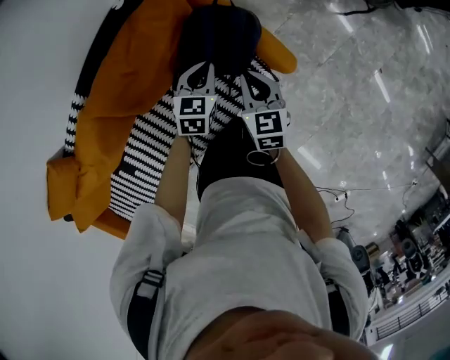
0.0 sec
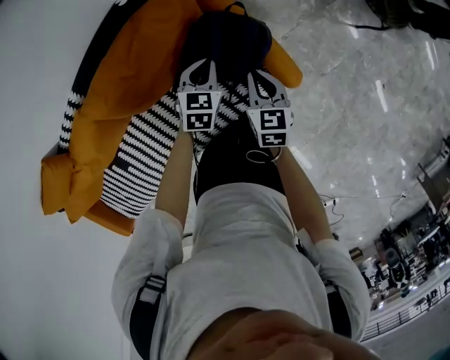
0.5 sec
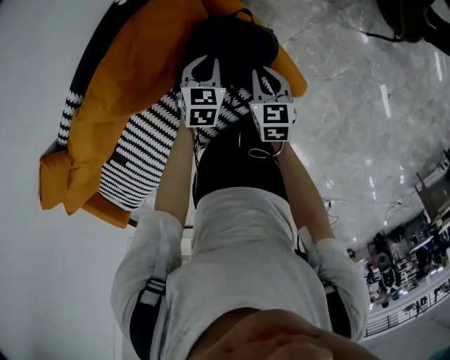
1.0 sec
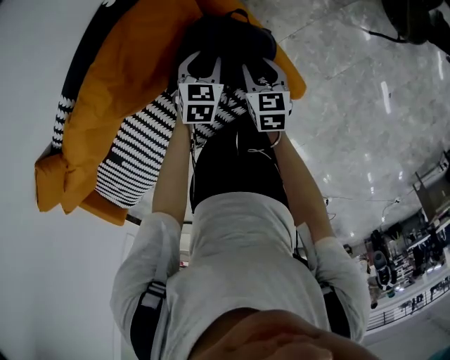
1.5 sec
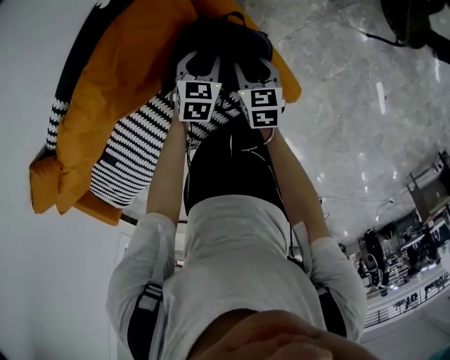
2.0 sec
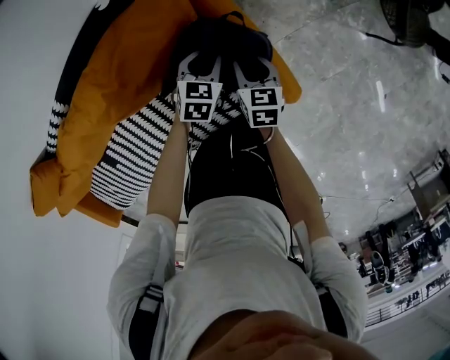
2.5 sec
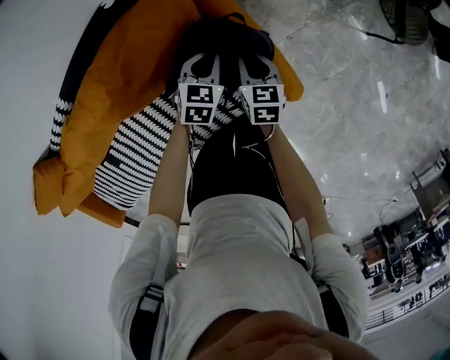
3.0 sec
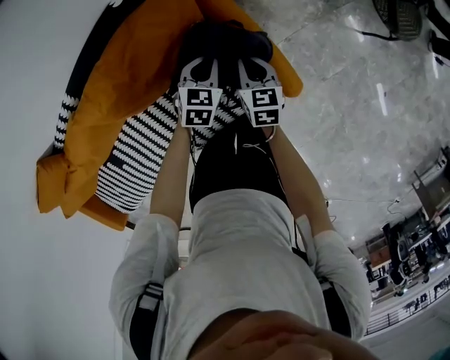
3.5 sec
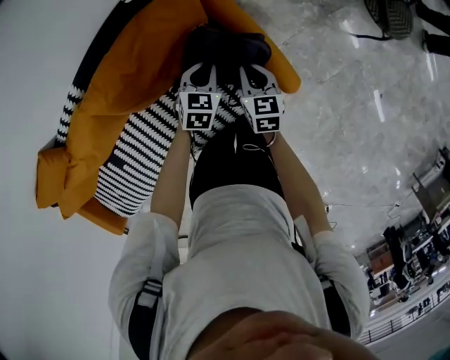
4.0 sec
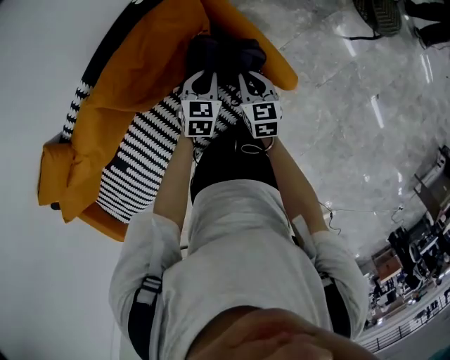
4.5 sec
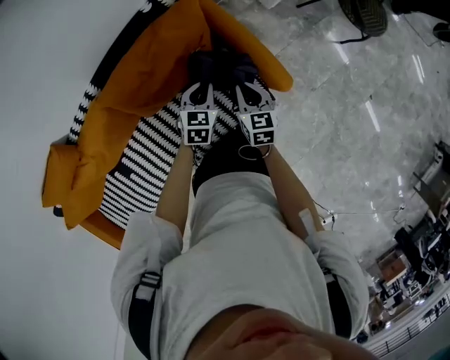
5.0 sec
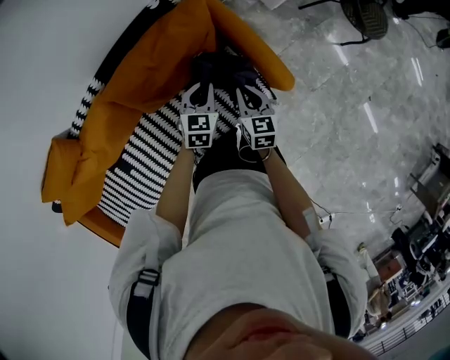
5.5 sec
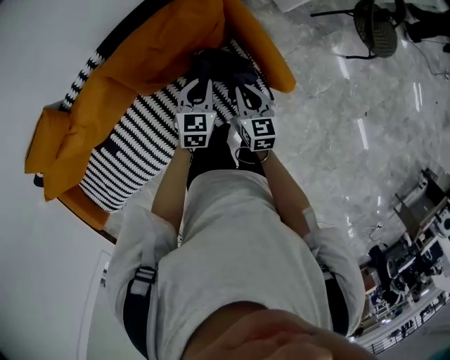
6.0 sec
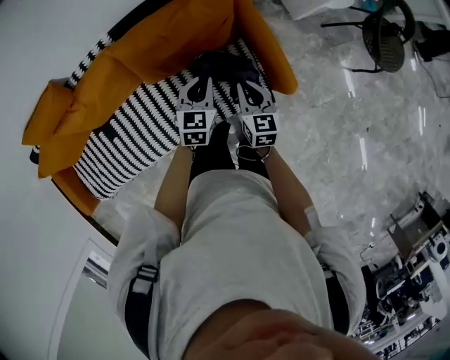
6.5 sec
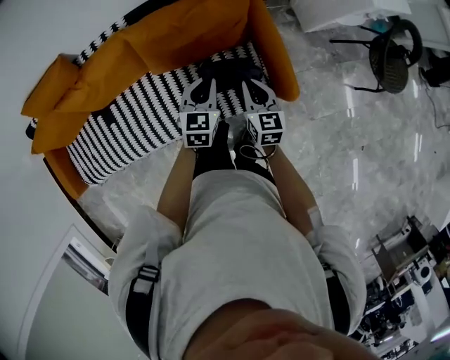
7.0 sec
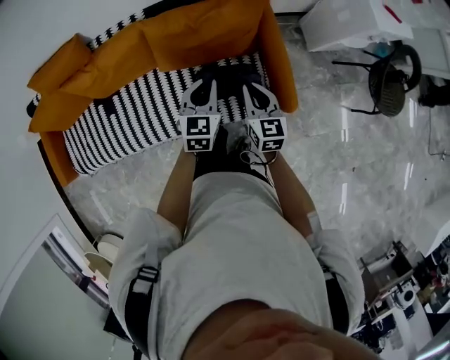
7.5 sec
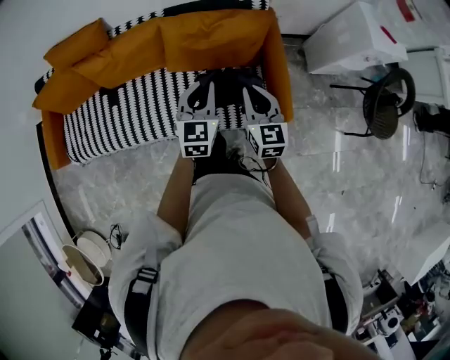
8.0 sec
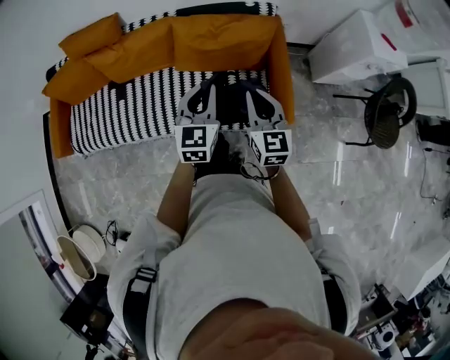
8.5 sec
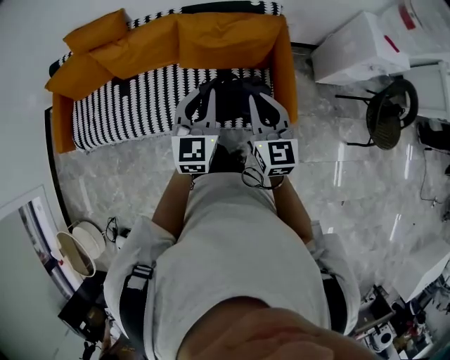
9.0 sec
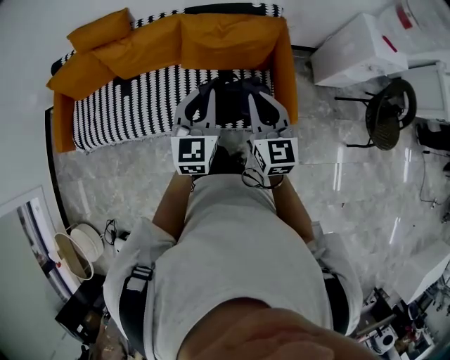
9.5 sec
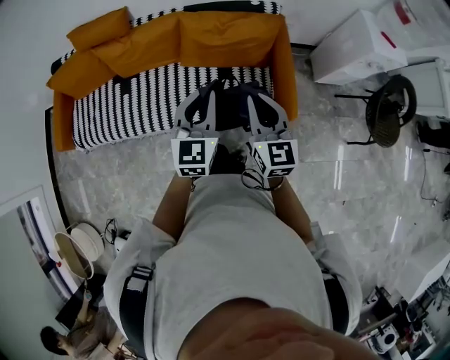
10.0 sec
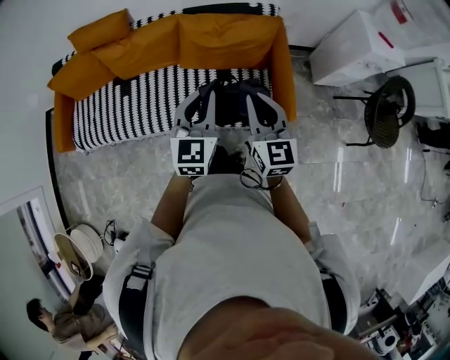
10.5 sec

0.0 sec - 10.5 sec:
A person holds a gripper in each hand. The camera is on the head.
0.0 sec - 2.0 sec: The two grippers go roughly 20 cm downward and forward. The left gripper opens its fingers. The right gripper opens up.
2.0 sec - 4.0 sec: Both grippers move upward and backward, approximately 10 cm. The left gripper closes its fingers, while the right gripper closes up.
4.0 sec - 6.5 sec: The right gripper goes roughly 20 cm backward and upward; the left gripper moves upward, backward and to the left, roughly 20 cm, and turns by about 20 degrees.
6.5 sec - 8.5 sec: Both grippers move upward and backward, about 25 cm. The left gripper rotates about 30 degrees. The right gripper rotates about 30 degrees.
8.5 sec - 10.5 sec: The two grippers go roughly 10 cm backward and upward.

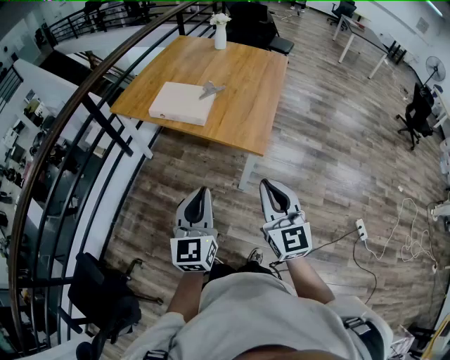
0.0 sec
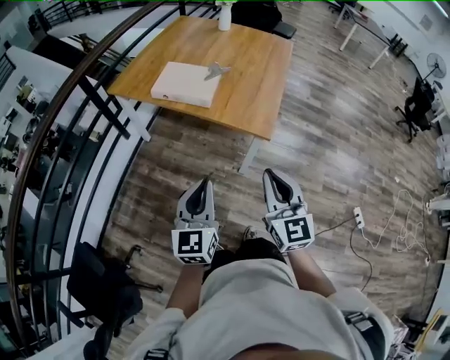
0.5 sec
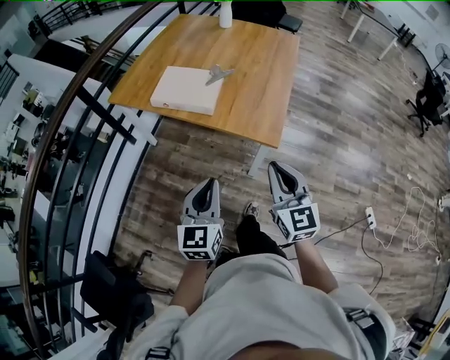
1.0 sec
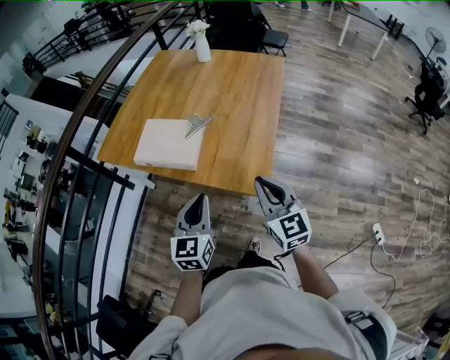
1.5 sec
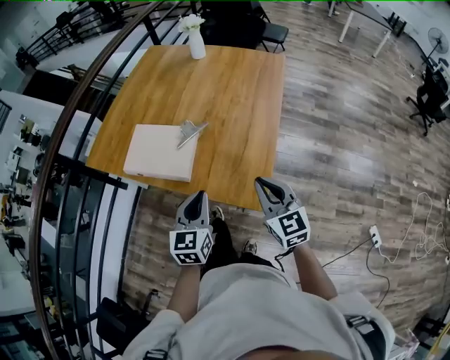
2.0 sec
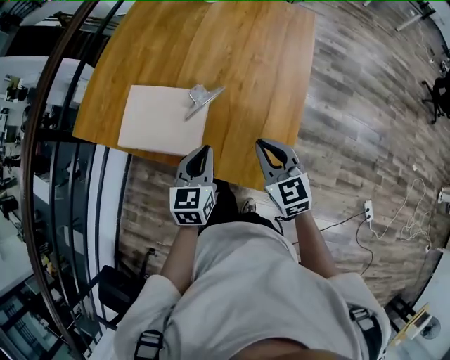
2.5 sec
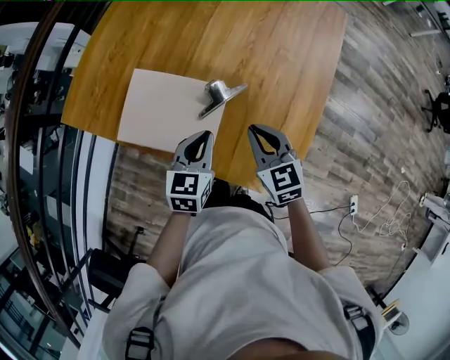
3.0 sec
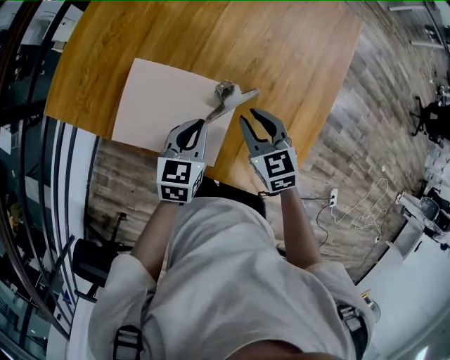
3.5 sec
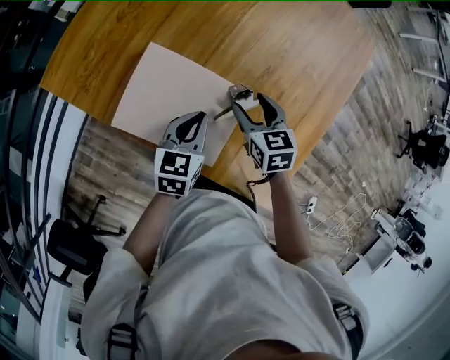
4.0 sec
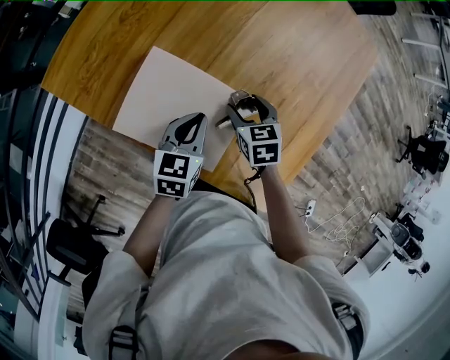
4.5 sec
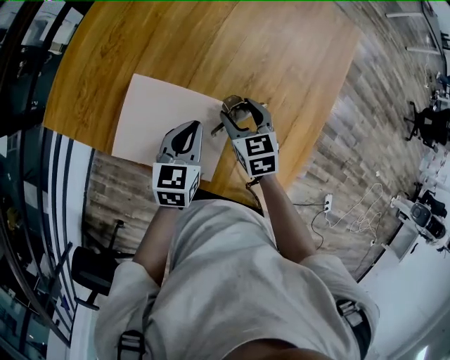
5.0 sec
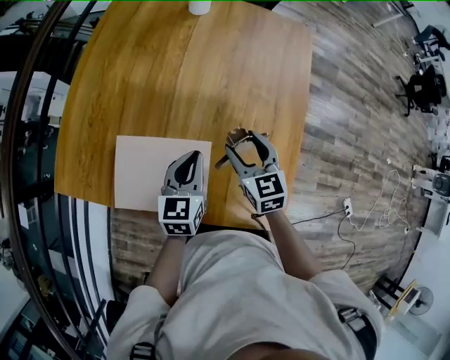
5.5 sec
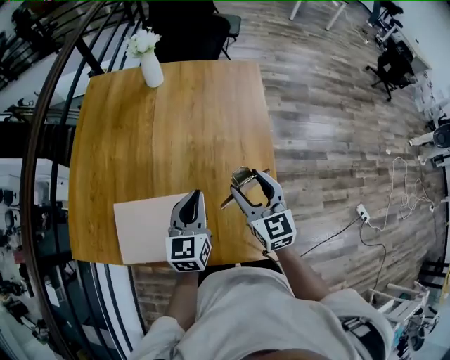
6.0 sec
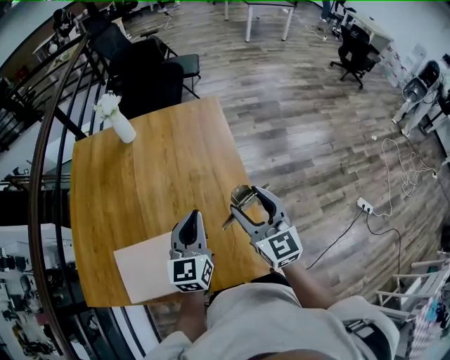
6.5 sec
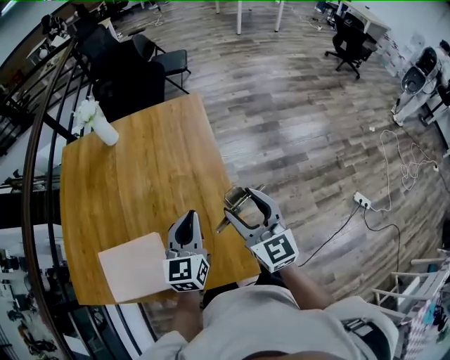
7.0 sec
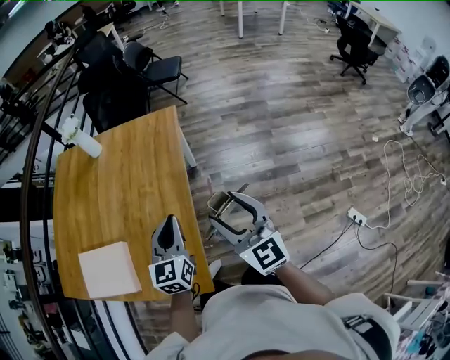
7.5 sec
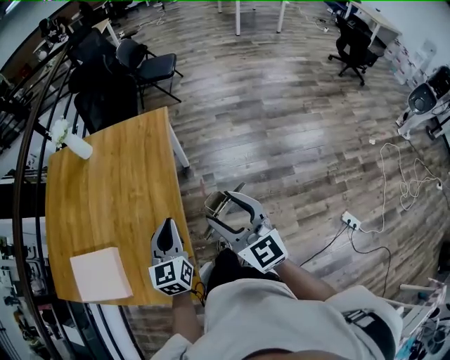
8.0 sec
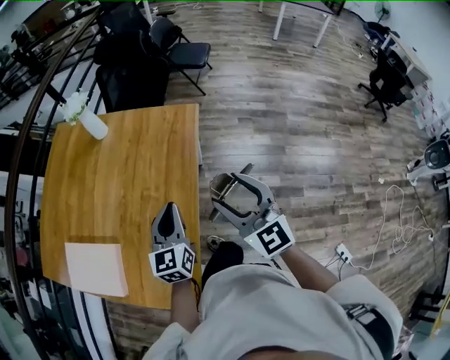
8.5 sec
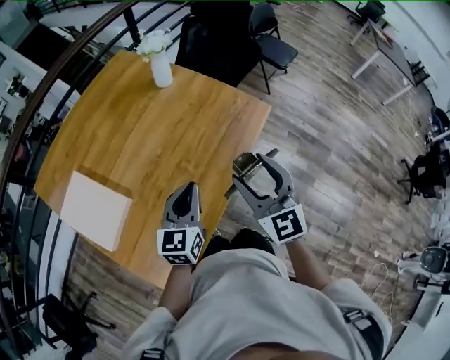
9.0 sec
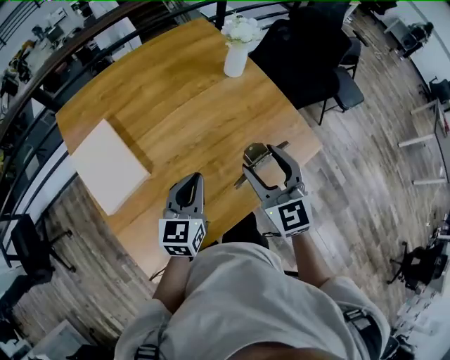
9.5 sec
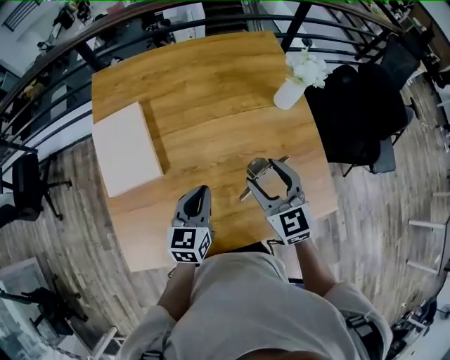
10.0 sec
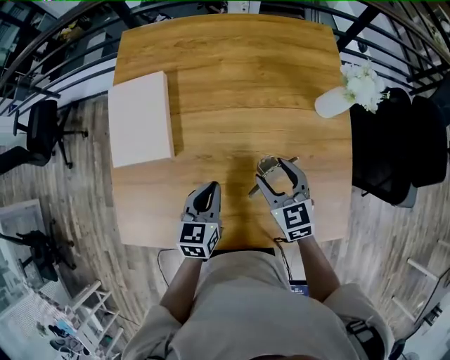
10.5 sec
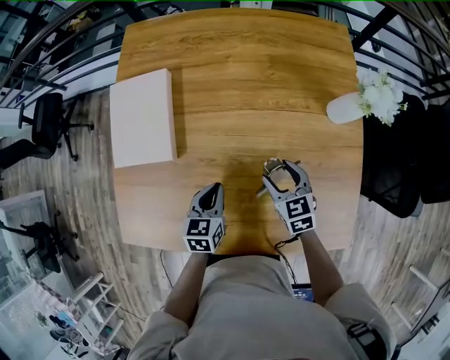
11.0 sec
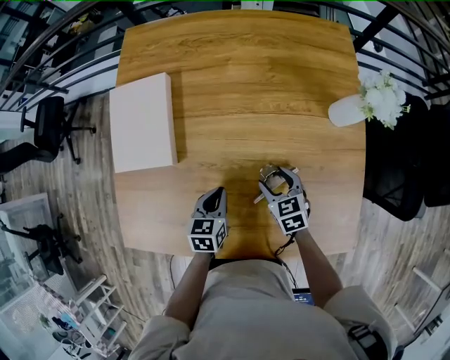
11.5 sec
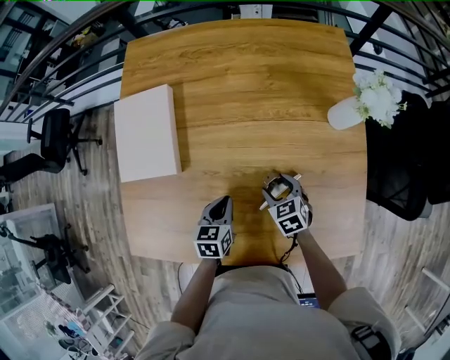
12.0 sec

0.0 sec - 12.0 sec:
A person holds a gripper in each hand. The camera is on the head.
0.0 sec - 2.0 sec: The two grippers go some 35 cm forward.
2.0 sec - 4.0 sec: The left gripper goes approximately 40 cm forward, downward and to the left, and turns by some 20 degrees; the right gripper heads forward, to the left and downward, covering some 50 cm, points its fingers some 30 degrees further downward, and opens.
4.0 sec - 6.0 sec: Both grippers move to the right and upward, roughly 25 cm. The left gripper swivels about 30 degrees. Meanwhile the right gripper turns by roughly 40 degrees.
6.0 sec - 8.0 sec: Both grippers travel together to the right, some 40 cm.
8.0 sec - 10.0 sec: The left gripper ends up roughly 35 cm from where it was, and swivels some 70 degrees; the right gripper shifts by some 50 cm, and swivels about 80 degrees.
10.0 sec - 12.0 sec: The right gripper moves downward, approximately 25 cm, and rotates some 30 degrees. The left gripper moves downward, some 15 cm, and rotates approximately 30 degrees.

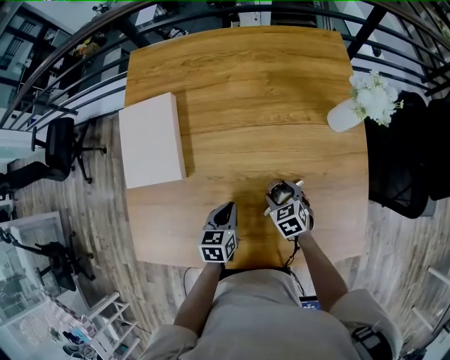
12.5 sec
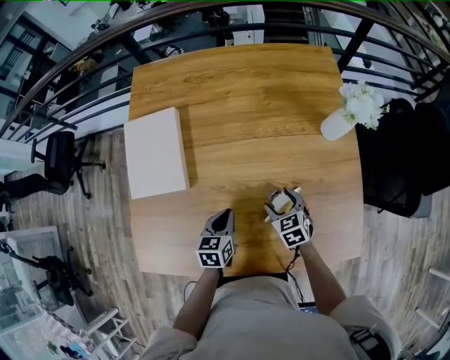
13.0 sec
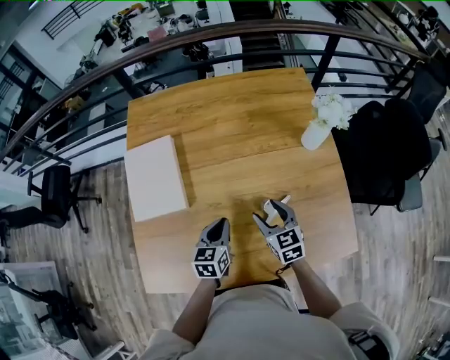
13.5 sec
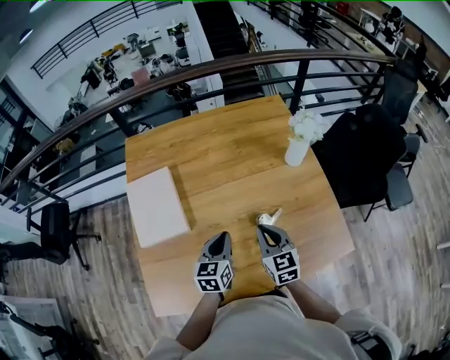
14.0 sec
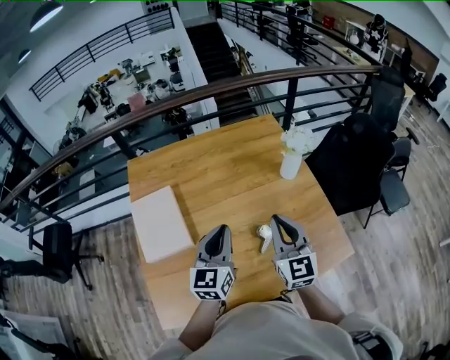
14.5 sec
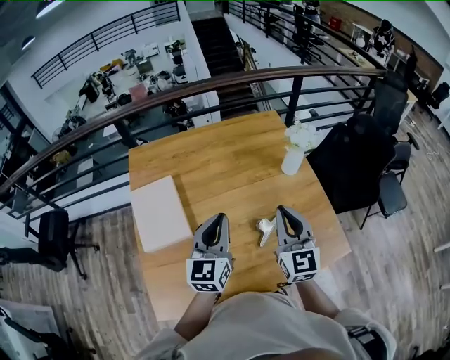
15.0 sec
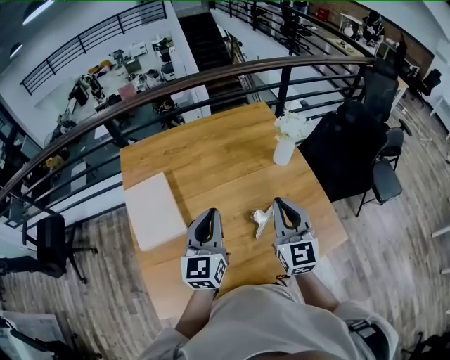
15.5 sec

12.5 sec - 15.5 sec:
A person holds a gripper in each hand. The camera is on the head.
12.5 sec - 14.0 sec: Both grippers move upward, approximately 20 cm. The left gripper turns by approximately 20 degrees; the right gripper tilts its fingers roughly 30 degrees upward, and closes its fingers.
14.0 sec - 15.5 sec: Both grippers move upward, roughly 15 cm. The right gripper turns by some 30 degrees. The left gripper swivels roughly 30 degrees.

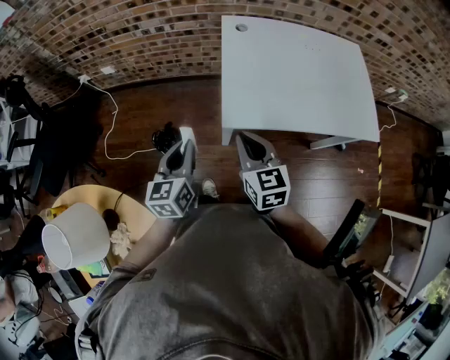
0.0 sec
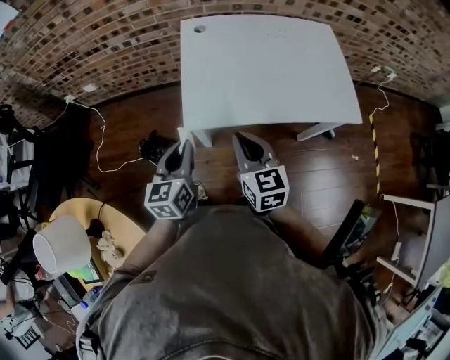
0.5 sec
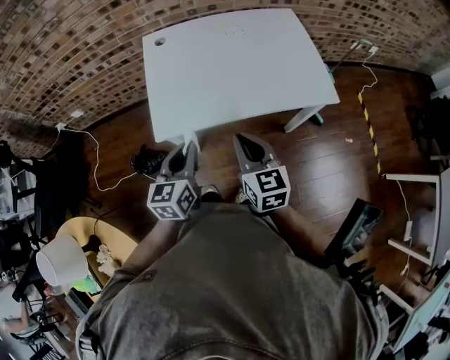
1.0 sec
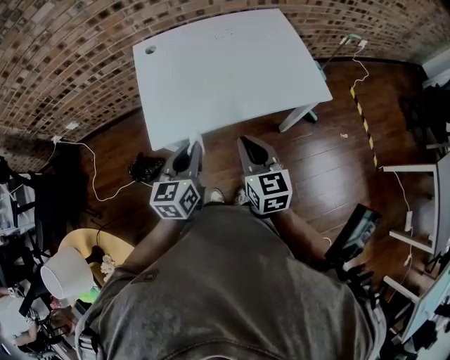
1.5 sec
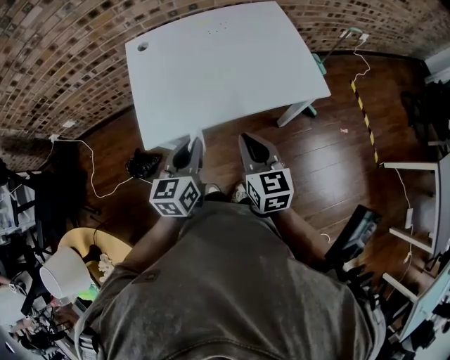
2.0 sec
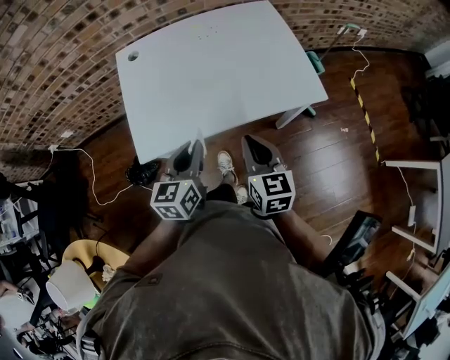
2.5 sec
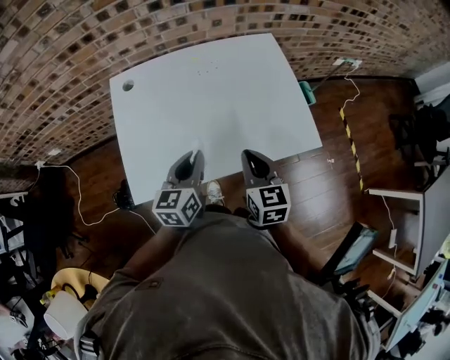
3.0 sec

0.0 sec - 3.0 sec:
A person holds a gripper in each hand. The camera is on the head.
0.0 sec - 1.5 sec: Both grippers move to the right, some 30 cm.
1.5 sec - 3.0 sec: Both grippers move forward and to the right, some 20 cm.
